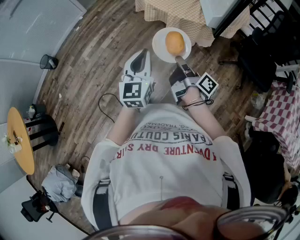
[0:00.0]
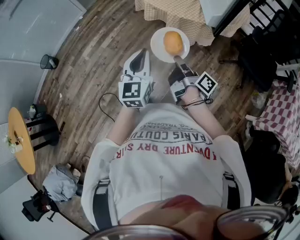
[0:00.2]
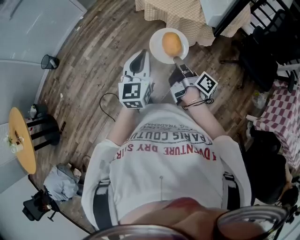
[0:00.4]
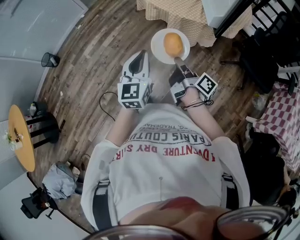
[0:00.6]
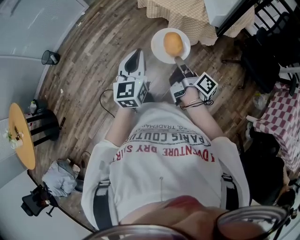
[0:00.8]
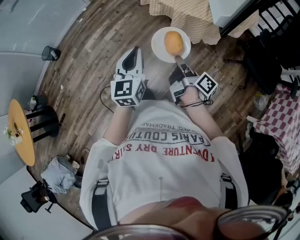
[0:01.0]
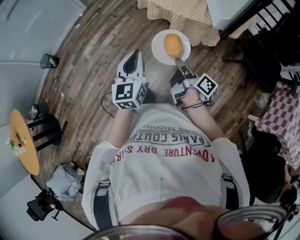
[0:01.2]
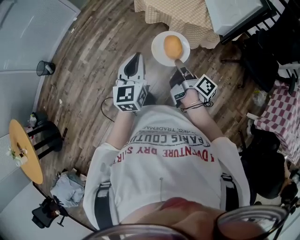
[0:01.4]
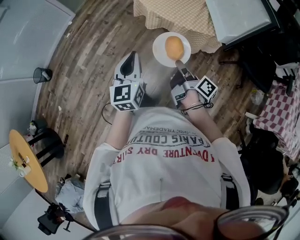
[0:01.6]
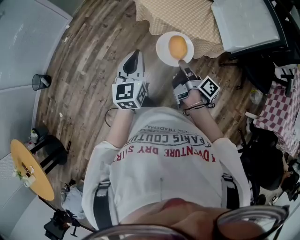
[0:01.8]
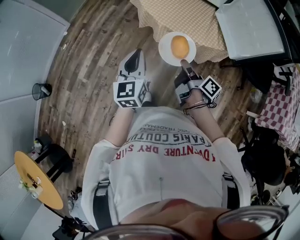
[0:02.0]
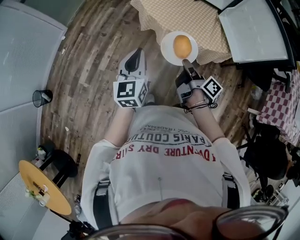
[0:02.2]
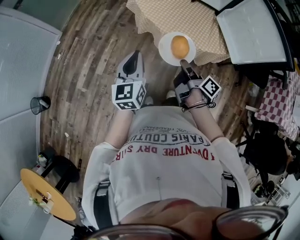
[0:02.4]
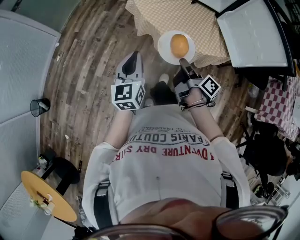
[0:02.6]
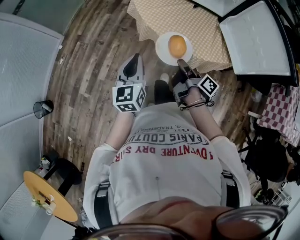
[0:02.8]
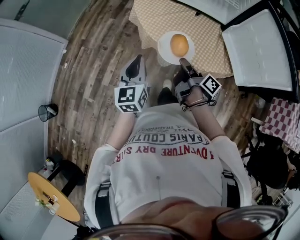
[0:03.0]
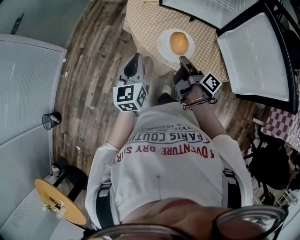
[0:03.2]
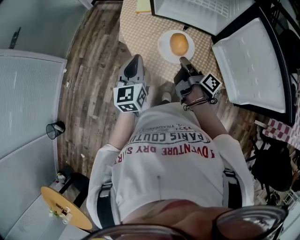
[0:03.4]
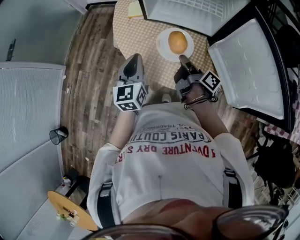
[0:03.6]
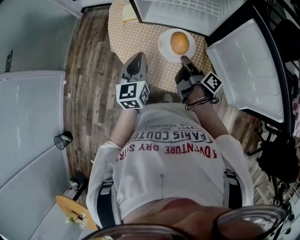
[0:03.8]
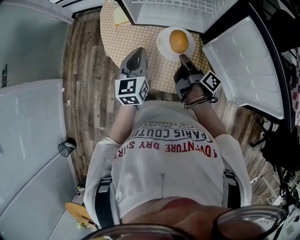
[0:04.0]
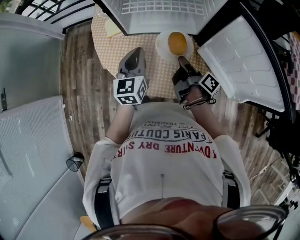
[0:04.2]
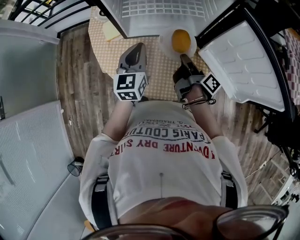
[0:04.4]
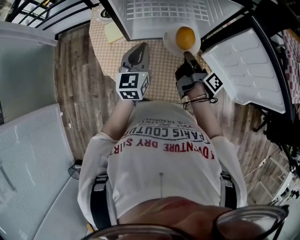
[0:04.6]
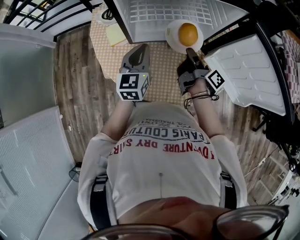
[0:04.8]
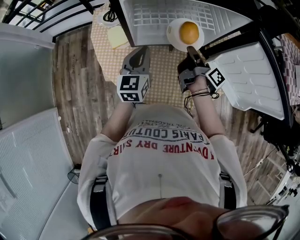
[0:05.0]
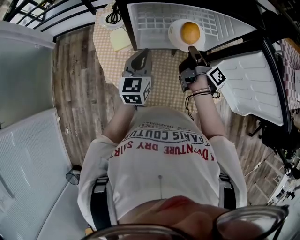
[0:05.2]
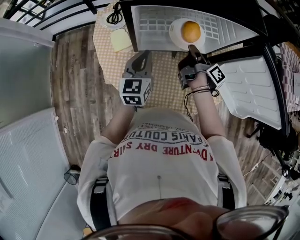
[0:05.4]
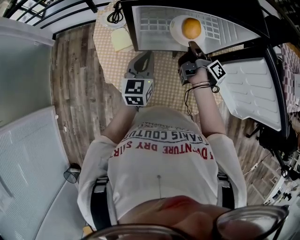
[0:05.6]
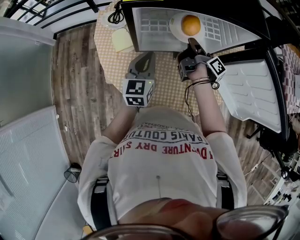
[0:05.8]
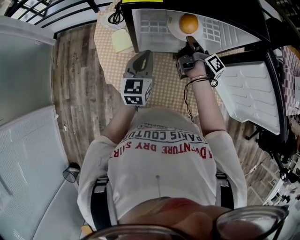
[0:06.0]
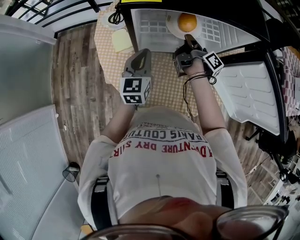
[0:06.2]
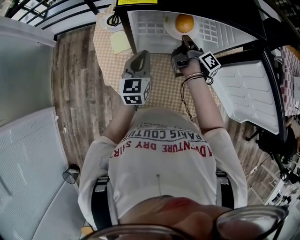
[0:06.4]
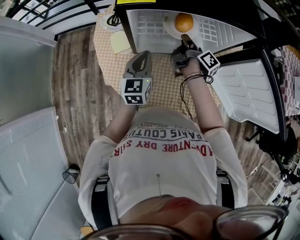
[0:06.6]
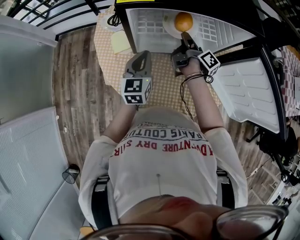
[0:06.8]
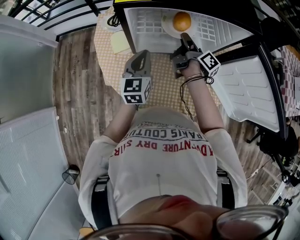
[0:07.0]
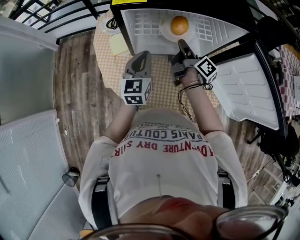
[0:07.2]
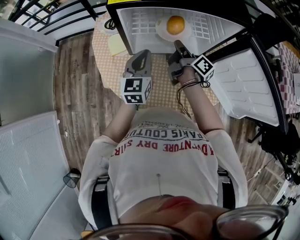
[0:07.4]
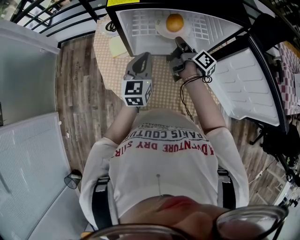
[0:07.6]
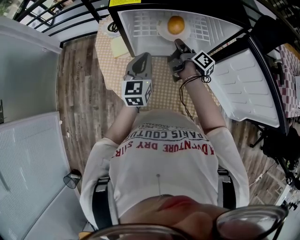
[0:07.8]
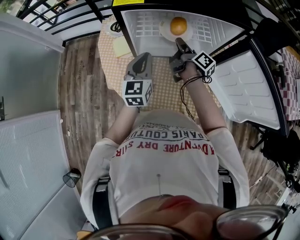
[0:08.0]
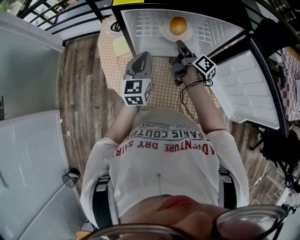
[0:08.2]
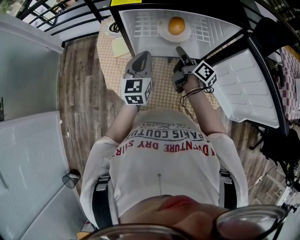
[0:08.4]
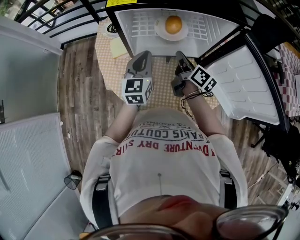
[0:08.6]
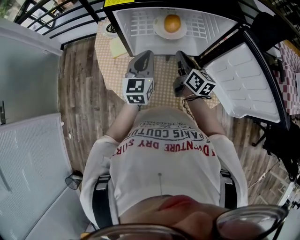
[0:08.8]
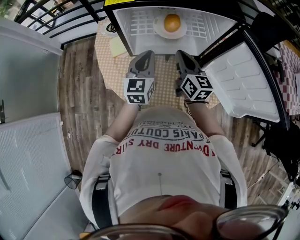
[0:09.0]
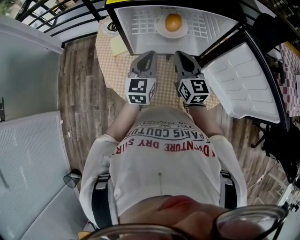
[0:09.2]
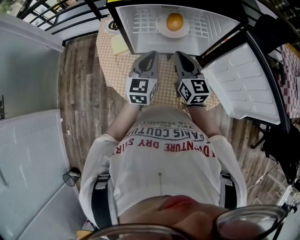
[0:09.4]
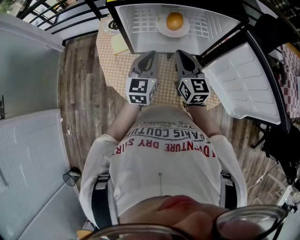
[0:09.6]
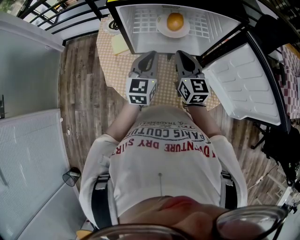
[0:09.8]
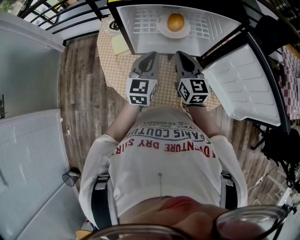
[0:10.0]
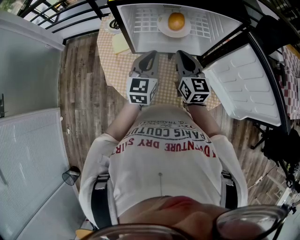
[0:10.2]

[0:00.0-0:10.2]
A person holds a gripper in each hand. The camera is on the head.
0:00.0 to 0:01.4: The left gripper shifts by about 10 cm.
0:01.4 to 0:03.0: The left gripper moves roughly 40 cm.
0:03.0 to 0:04.4: The left gripper shifts by some 40 cm, and swivels about 30 degrees.
0:04.4 to 0:05.8: The left gripper shifts by roughly 10 cm.

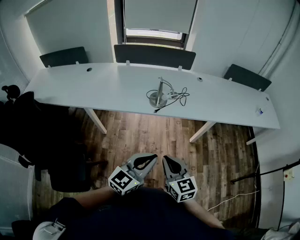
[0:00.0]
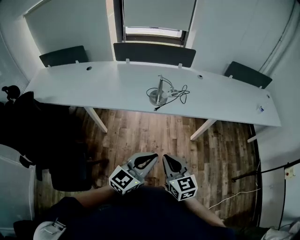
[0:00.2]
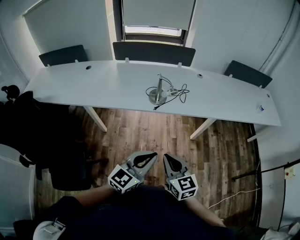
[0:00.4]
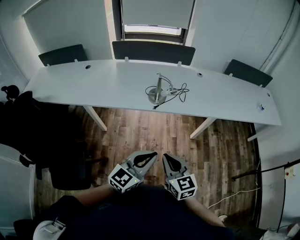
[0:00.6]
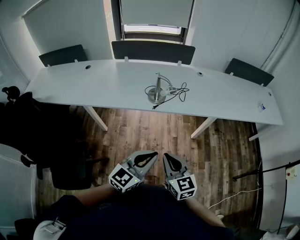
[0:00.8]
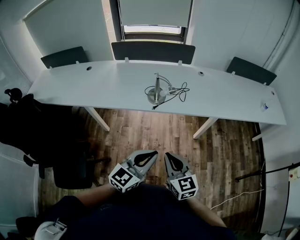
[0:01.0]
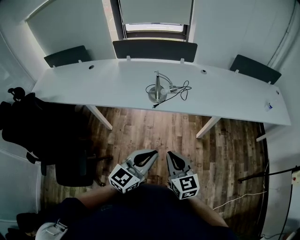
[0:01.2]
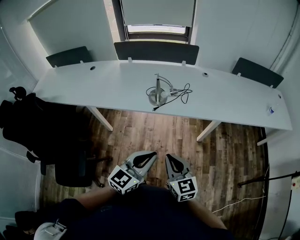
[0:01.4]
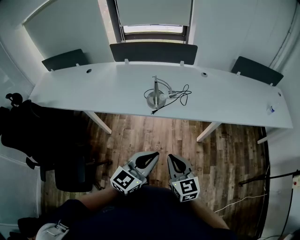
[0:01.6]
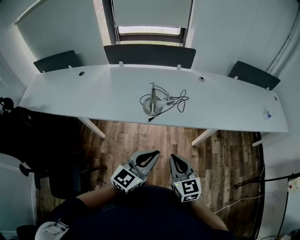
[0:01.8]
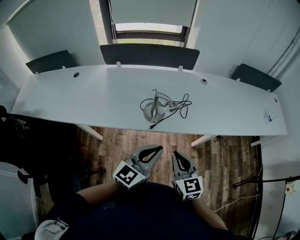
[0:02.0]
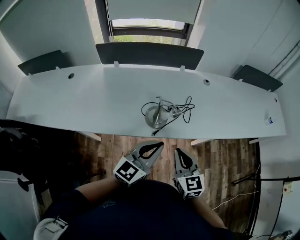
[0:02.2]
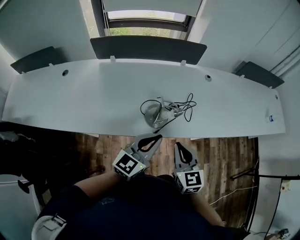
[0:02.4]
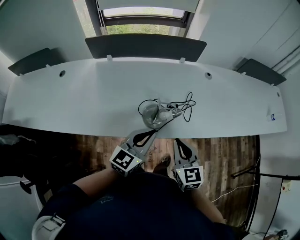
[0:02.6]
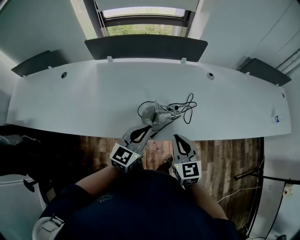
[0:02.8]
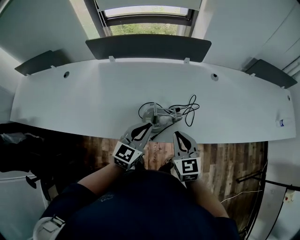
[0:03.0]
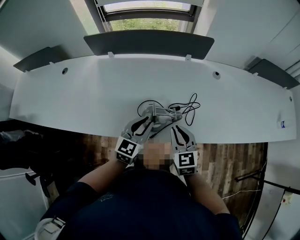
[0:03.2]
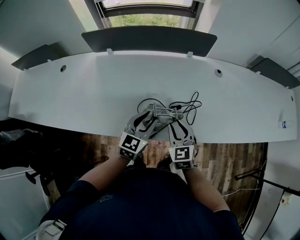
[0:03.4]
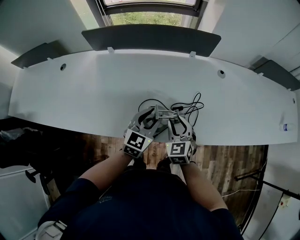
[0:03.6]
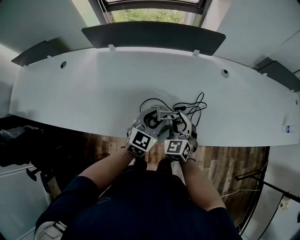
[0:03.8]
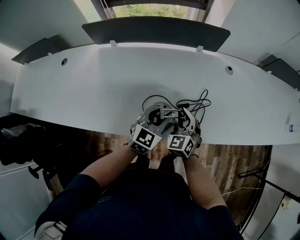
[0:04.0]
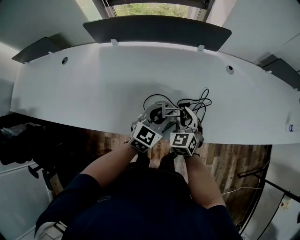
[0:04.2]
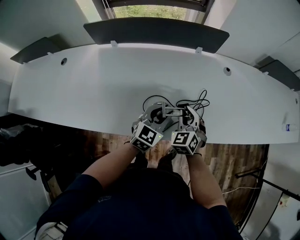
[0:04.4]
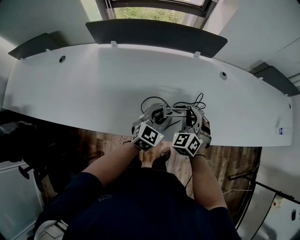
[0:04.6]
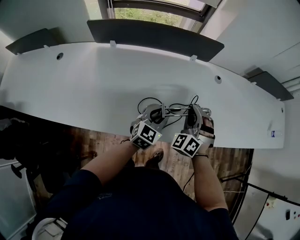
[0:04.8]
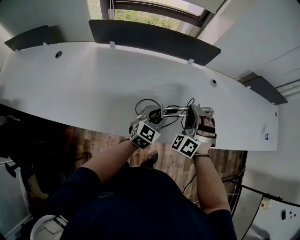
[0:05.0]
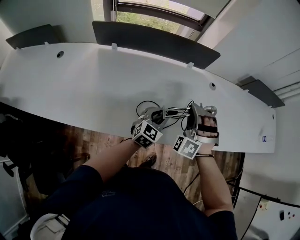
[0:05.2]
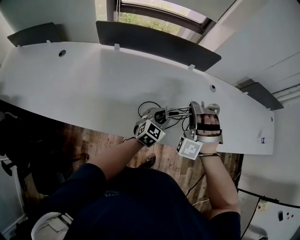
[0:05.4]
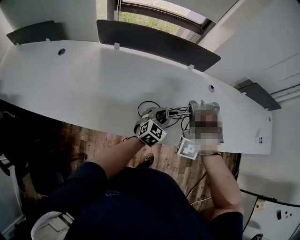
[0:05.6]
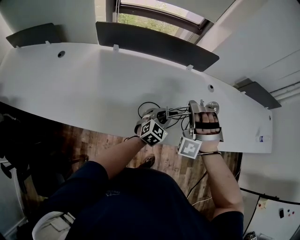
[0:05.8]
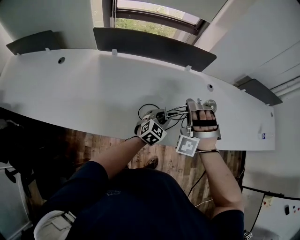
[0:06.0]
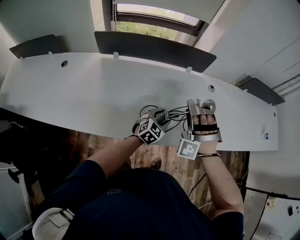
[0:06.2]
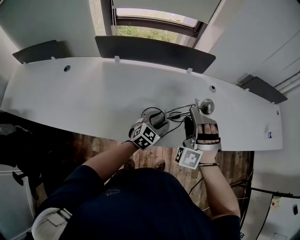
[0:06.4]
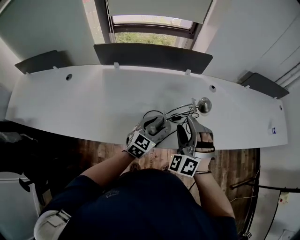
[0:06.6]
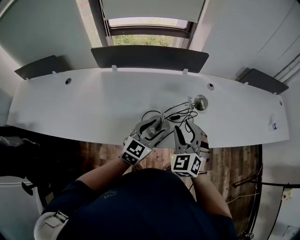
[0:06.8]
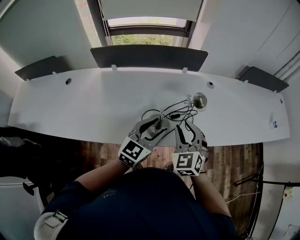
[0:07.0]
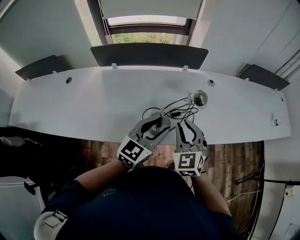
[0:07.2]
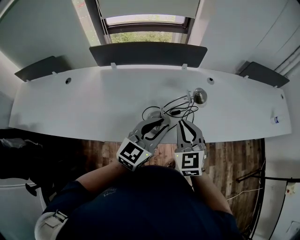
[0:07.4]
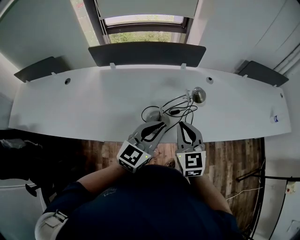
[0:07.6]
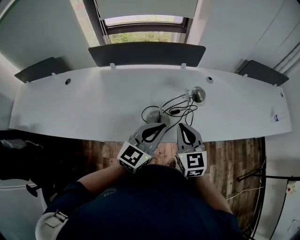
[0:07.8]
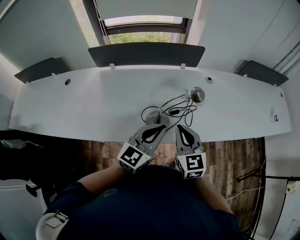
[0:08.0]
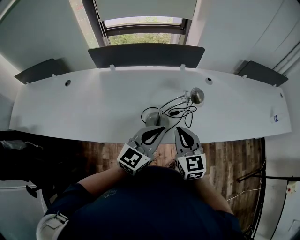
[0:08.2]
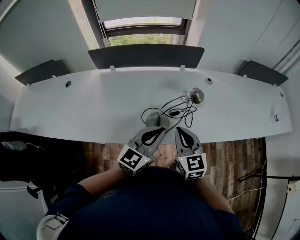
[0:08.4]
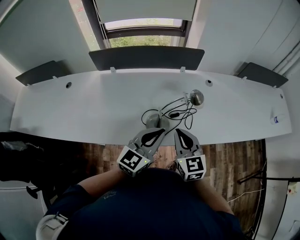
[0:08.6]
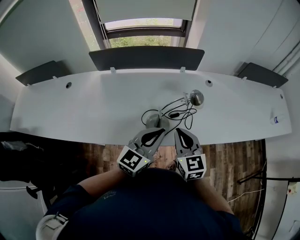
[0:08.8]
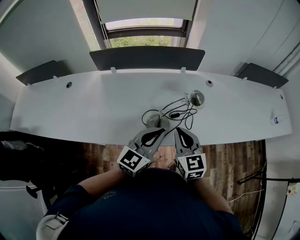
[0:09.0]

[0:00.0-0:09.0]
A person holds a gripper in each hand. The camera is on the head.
0:00.0 to 0:01.6: Both grippers travel together forward and to the right, some 10 cm.
0:01.6 to 0:03.0: The right gripper moves forward, roughly 35 cm, while the left gripper moves forward and to the left, roughly 40 cm.
0:03.0 to 0:04.4: The two grippers go roughly 15 cm forward and downward. The right gripper turns by approximately 30 degrees. Meanwhile the left gripper opens.
0:04.4 to 0:06.0: The right gripper is displaced upward by approximately 15 cm, and twists roughly 70 degrees counterclockwise, seen from behind.
0:06.0 to 0:07.6: The left gripper goes some 20 cm upward and backward, rotates approximately 20 degrees, and opens, then closes again; the right gripper shifts about 10 cm backward and to the right, rotates around the line of its fingers by roughly 100 degrees, clockwise from behind, and opens, then closes again.
0:07.6 to 0:09.0: The grippers move only a little.

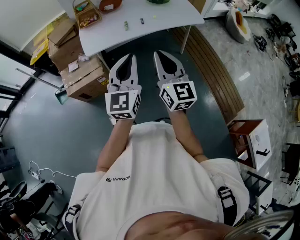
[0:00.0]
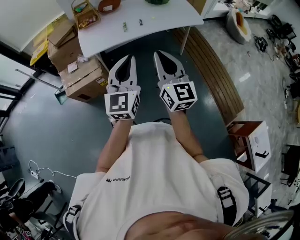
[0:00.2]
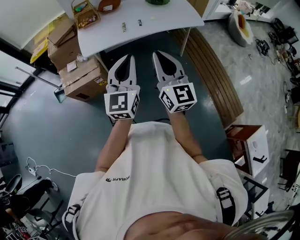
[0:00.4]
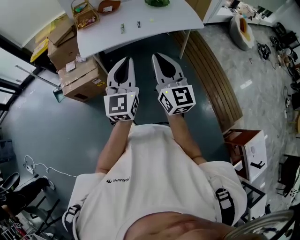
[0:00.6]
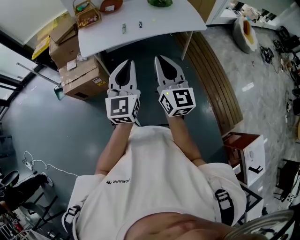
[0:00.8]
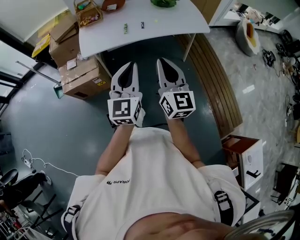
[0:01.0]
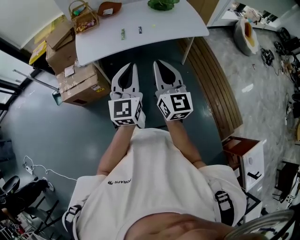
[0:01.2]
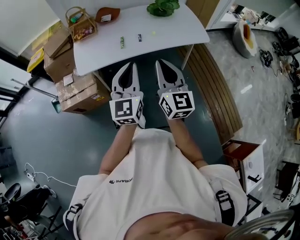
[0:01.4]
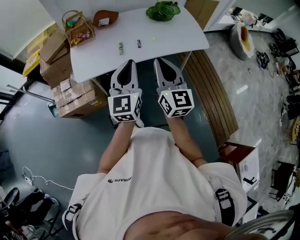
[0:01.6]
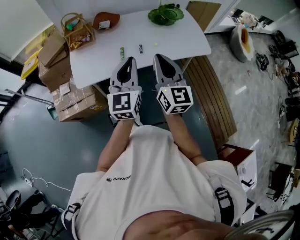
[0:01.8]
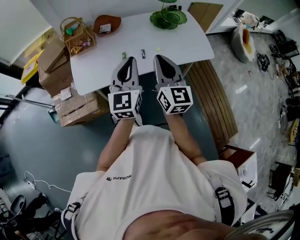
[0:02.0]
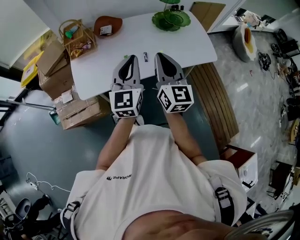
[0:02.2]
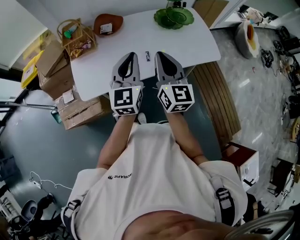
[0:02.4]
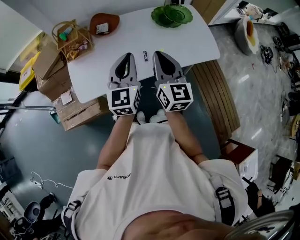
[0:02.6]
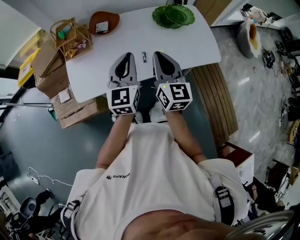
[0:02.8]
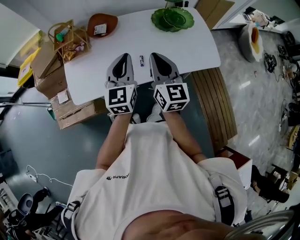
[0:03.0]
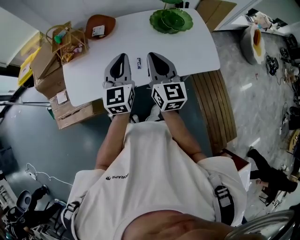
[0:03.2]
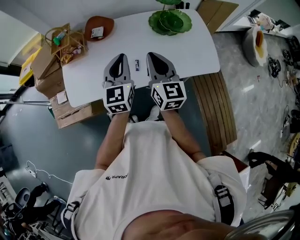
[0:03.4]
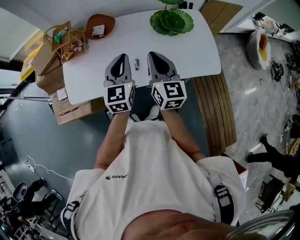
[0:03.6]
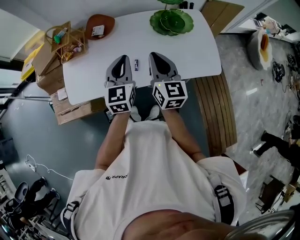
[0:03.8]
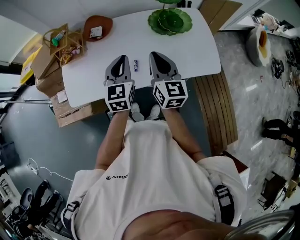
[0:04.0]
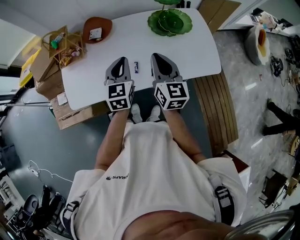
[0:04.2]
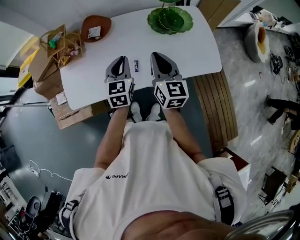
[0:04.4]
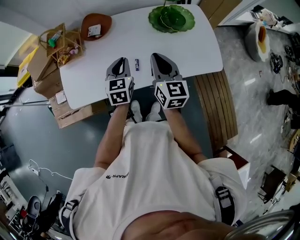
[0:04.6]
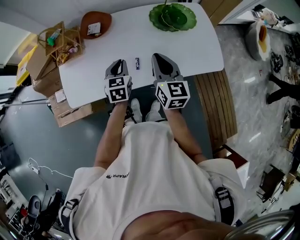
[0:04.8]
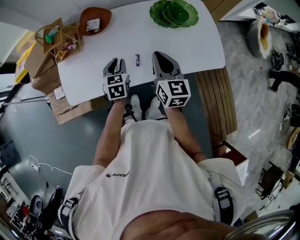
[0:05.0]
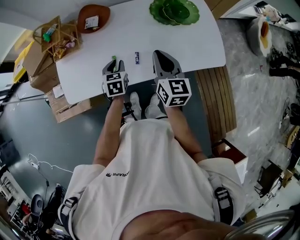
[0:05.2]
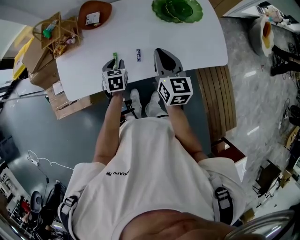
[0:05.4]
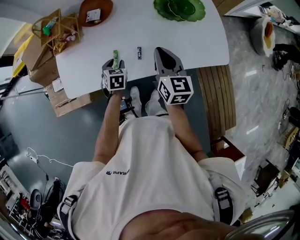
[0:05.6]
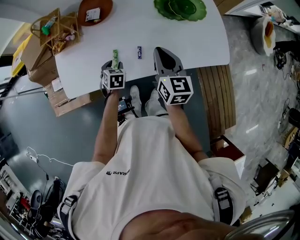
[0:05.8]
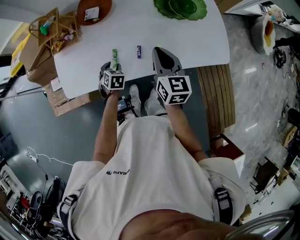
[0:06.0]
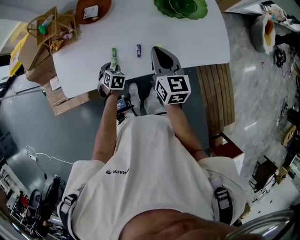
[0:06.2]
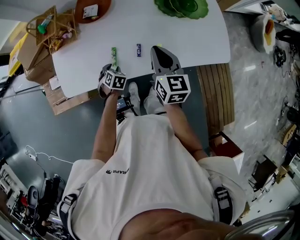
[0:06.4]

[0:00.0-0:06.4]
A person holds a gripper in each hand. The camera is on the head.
0:00.0 to 0:01.6: The grippers both shift forward by approximately 25 cm.
0:01.6 to 0:03.2: The grippers both shift forward by some 30 cm.
0:03.2 to 0:04.8: The right gripper shifts some 10 cm downward and forward; the left gripper shifts approximately 15 cm downward, and changes its angle by some 30 degrees.
0:04.8 to 0:06.4: The right gripper travels downward by about 5 cm. Meanwhile the left gripper travels downward by approximately 20 cm, points its fingers roughly 30 degrees further downward, and opens its fingers.
